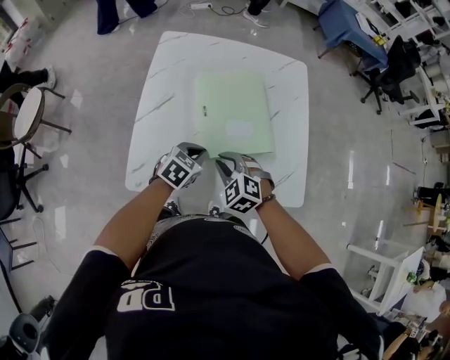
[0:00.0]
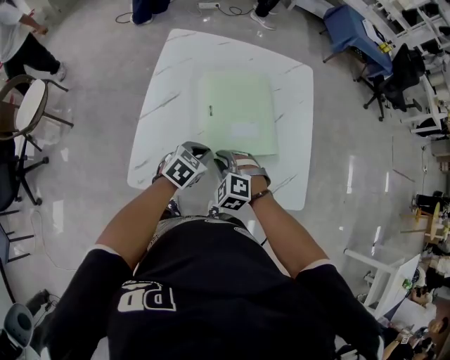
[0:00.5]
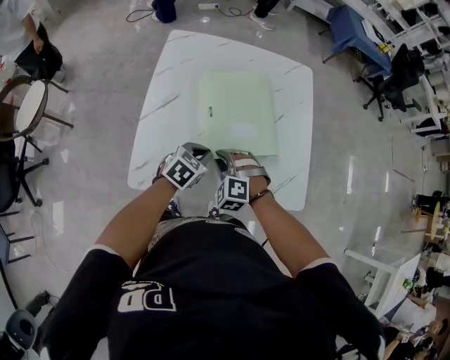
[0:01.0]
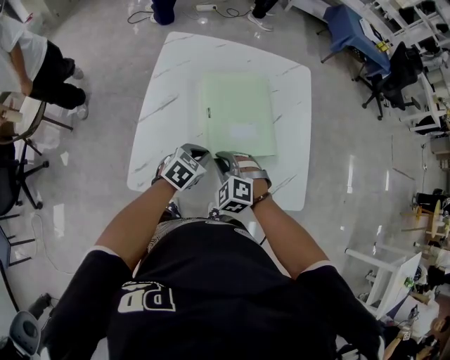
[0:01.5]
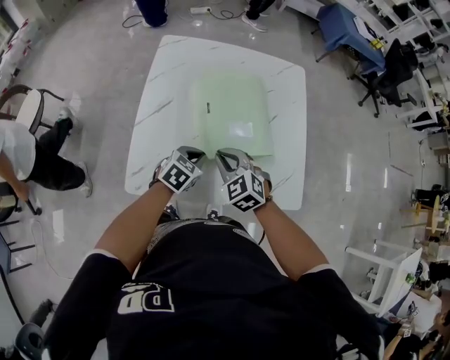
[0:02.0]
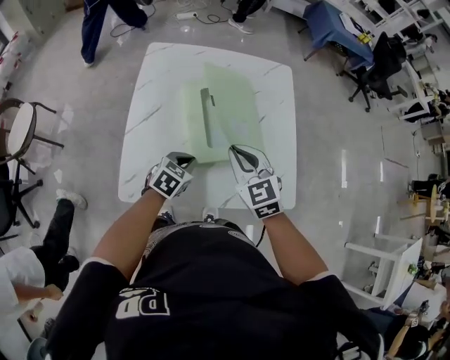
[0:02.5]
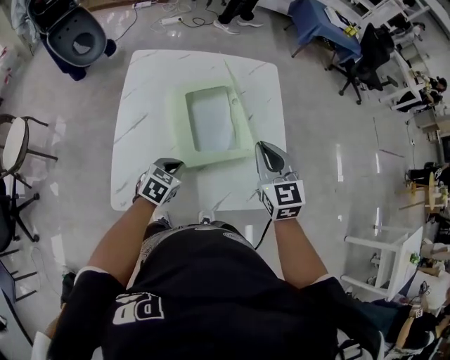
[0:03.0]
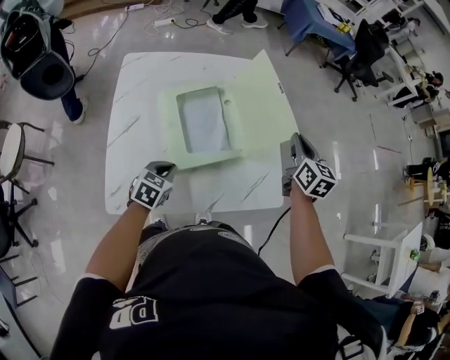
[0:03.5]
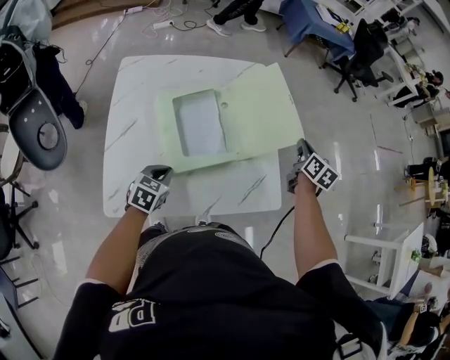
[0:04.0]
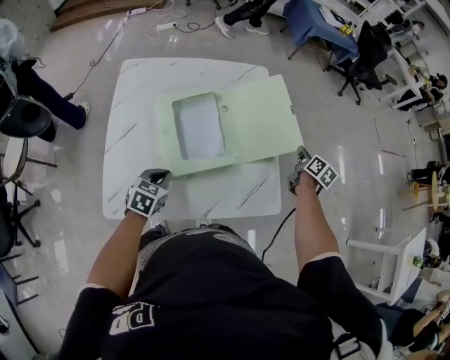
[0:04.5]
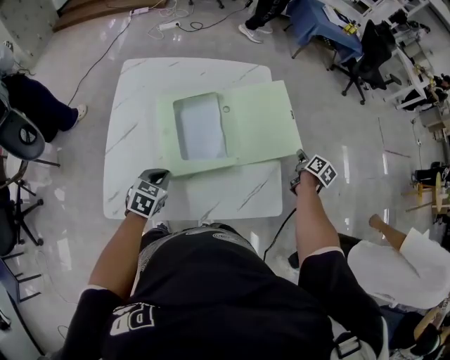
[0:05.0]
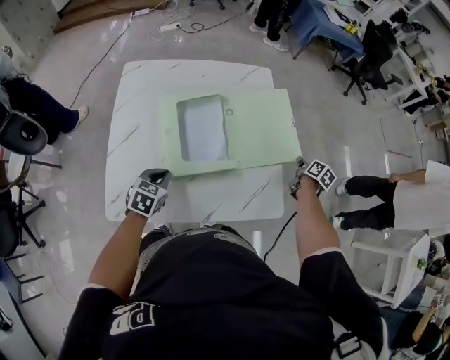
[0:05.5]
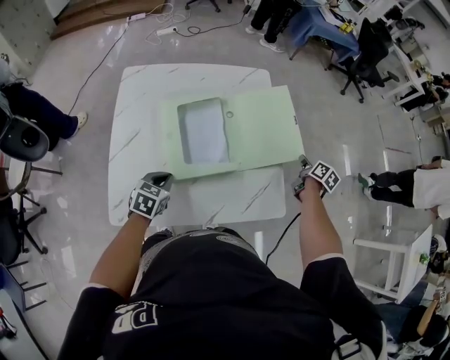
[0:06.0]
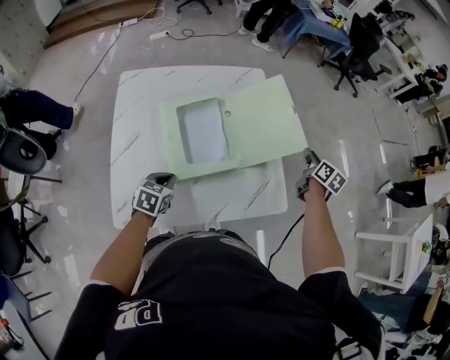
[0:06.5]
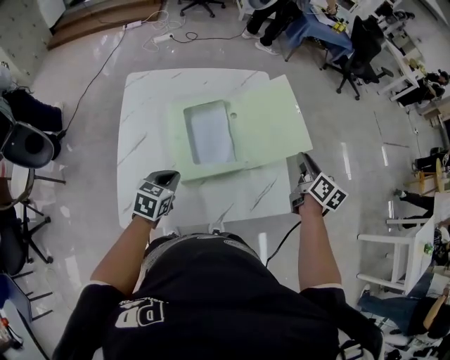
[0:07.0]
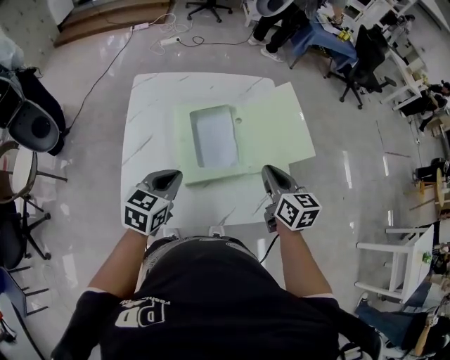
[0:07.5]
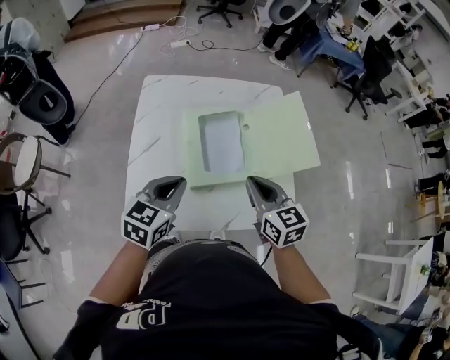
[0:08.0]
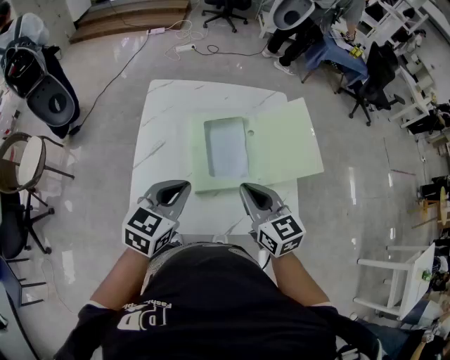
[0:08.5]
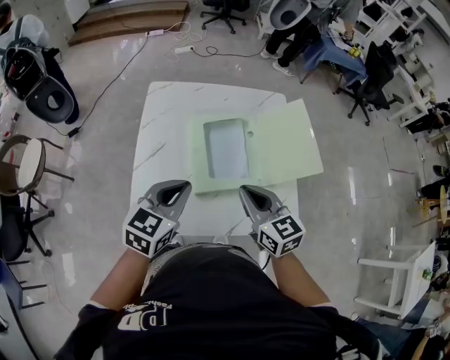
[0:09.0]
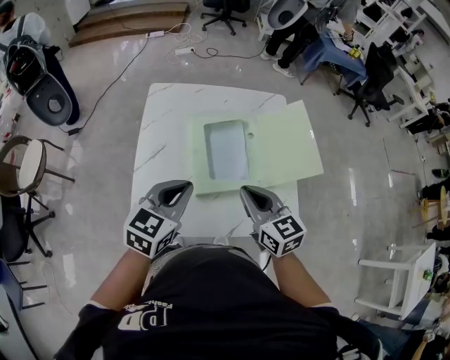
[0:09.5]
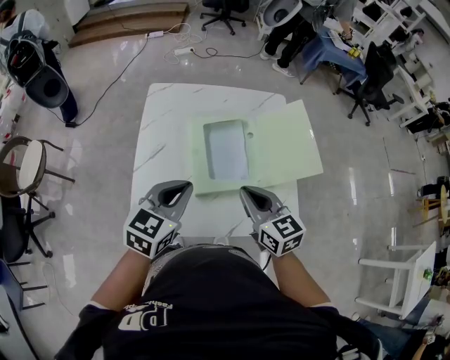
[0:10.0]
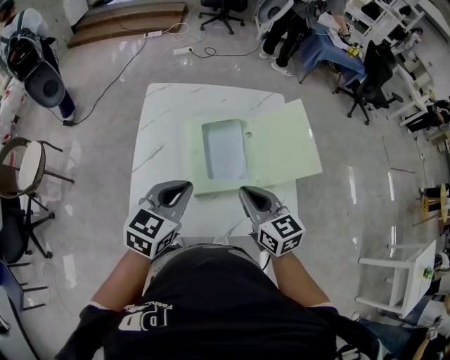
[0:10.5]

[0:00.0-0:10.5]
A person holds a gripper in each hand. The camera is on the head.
0:02.0 to 0:04.0: The right gripper moves to the right and forward, some 40 cm, and rolls clockwise, seen from behind, by some 70 degrees.
0:04.0 to 0:06.5: The right gripper travels downward and back again, roughly 15 cm each way, and opens its fingers.
0:06.5 to 0:08.5: The right gripper moves to the left and backward, roughly 40 cm, changes its angle by about 50 degrees, and closes up, while the left gripper heads upward, covering some 20 cm, and rotates some 20 degrees.
0:08.5 to 0:10.5: The grippers move only a little.

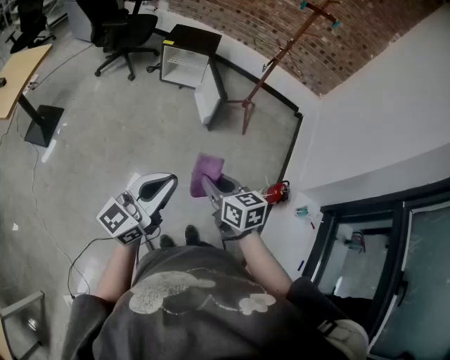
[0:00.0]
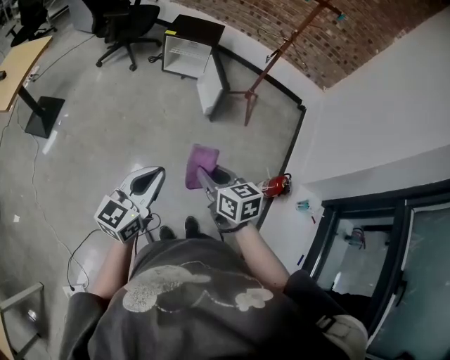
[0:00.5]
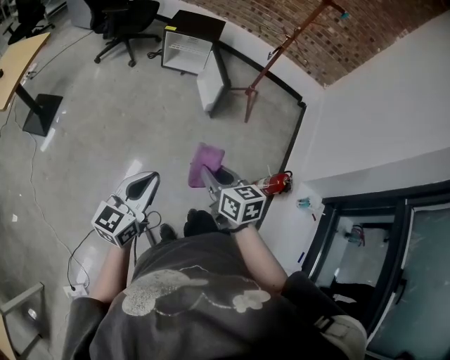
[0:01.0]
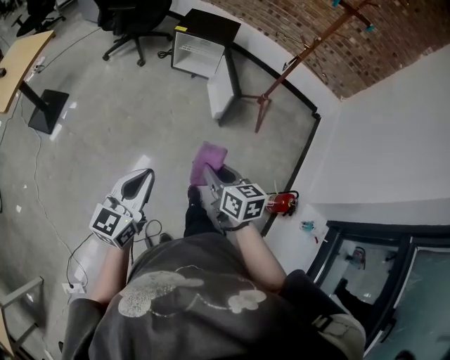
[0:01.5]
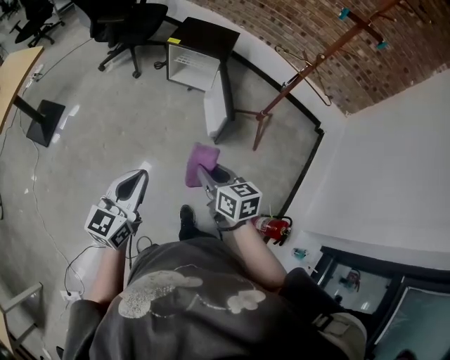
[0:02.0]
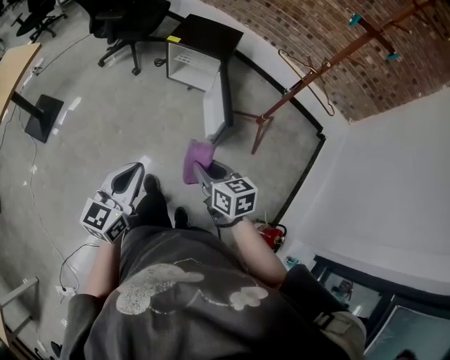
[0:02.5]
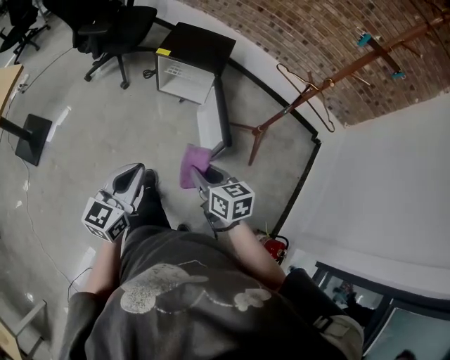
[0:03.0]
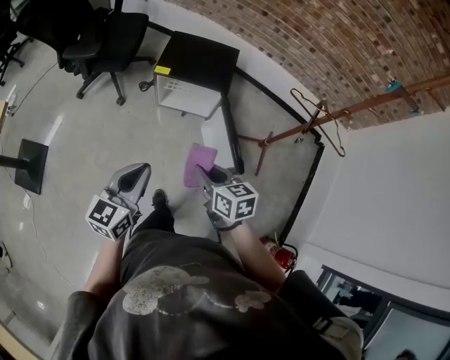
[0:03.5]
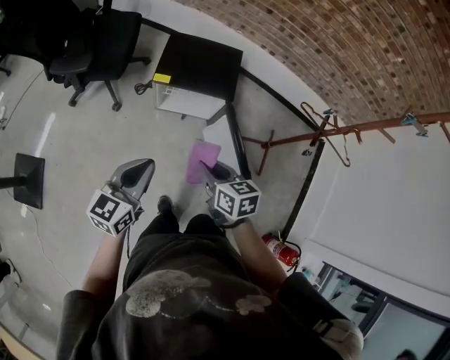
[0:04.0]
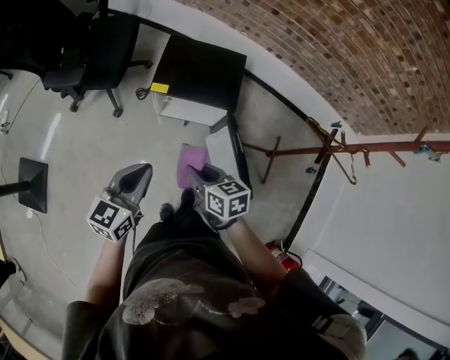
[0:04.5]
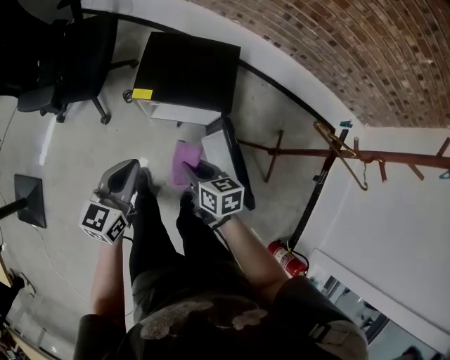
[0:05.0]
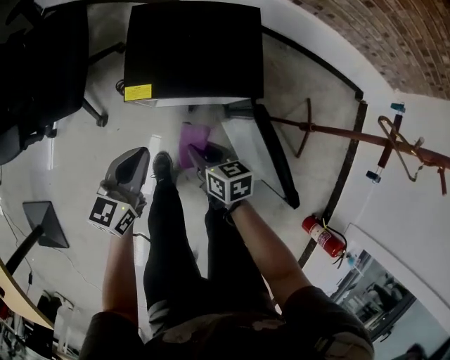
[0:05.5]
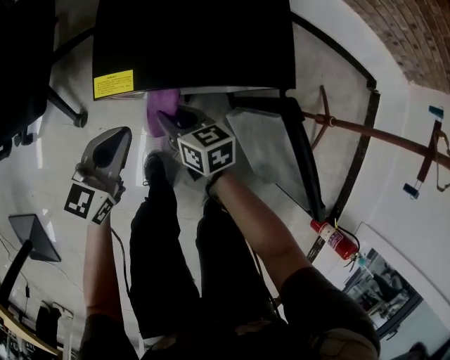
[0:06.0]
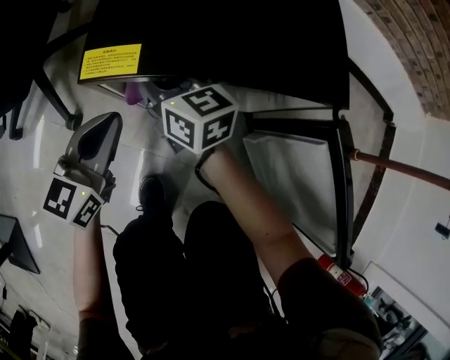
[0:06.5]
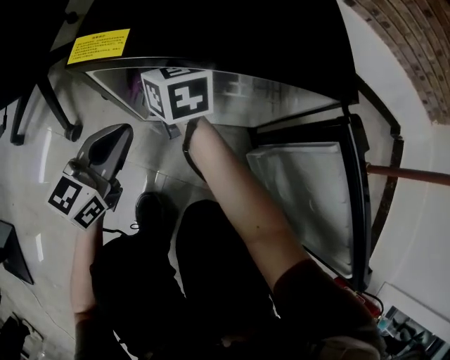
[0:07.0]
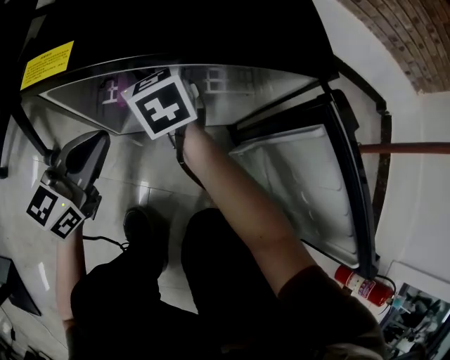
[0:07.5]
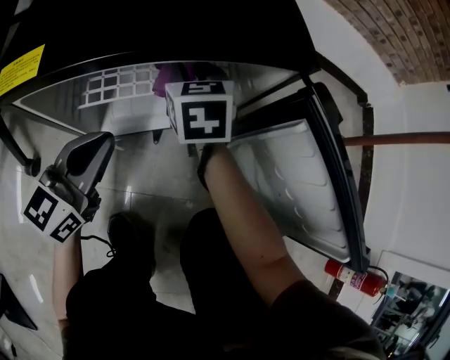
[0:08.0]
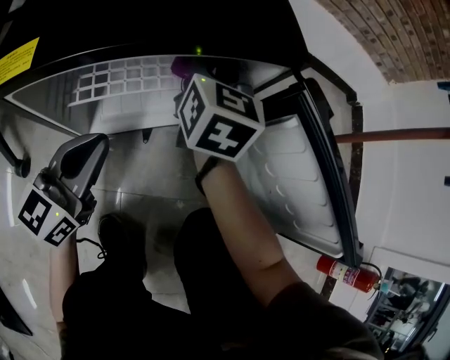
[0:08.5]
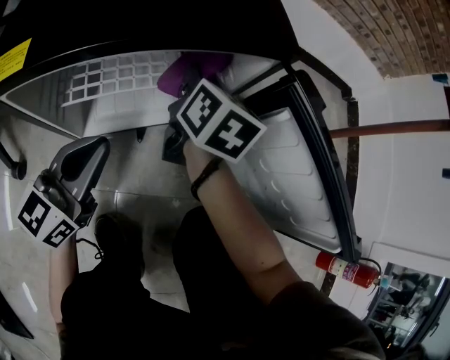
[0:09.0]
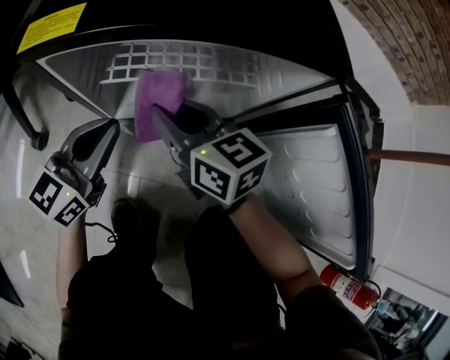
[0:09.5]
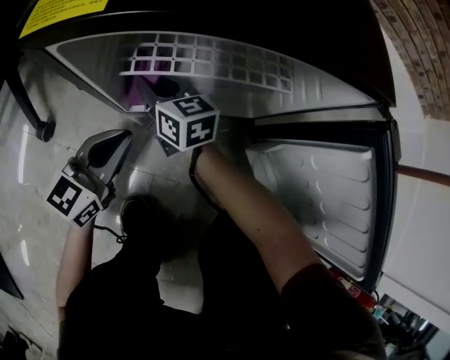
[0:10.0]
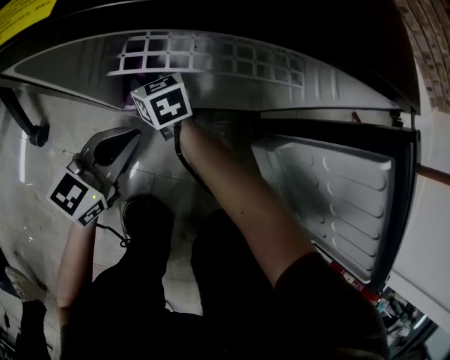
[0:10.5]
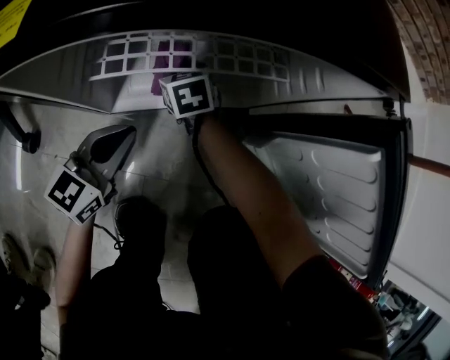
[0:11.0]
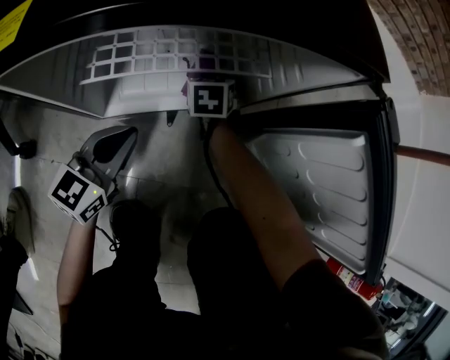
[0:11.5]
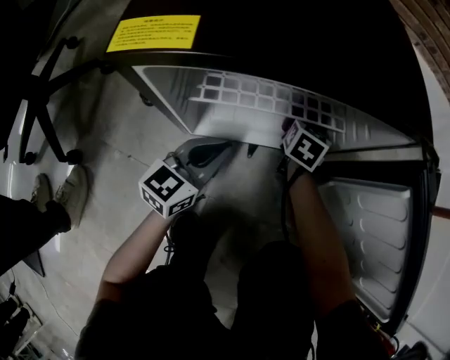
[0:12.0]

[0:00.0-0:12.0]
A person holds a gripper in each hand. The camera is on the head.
0:00.0 to 0:02.0: Both grippers travel together forward, roughly 25 cm. The left gripper changes its angle by approximately 30 degrees.
0:02.0 to 0:04.0: Both grippers are carried forward, approximately 50 cm.
0:04.0 to 0:06.0: The two grippers go approximately 50 cm downward and forward.
0:06.0 to 0:08.0: The left gripper goes roughly 15 cm downward. The right gripper shifts by some 20 cm, and turns by roughly 40 degrees.
0:08.0 to 0:10.0: The left gripper heads downward, covering about 10 cm. Meanwhile the right gripper ends up roughly 20 cm from where it was, and turns by roughly 40 degrees.
0:10.0 to 0:12.0: The right gripper shifts by some 30 cm, and rotates some 60 degrees. The left gripper ends up some 10 cm from where it was.

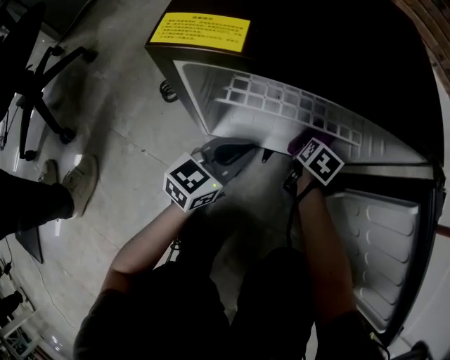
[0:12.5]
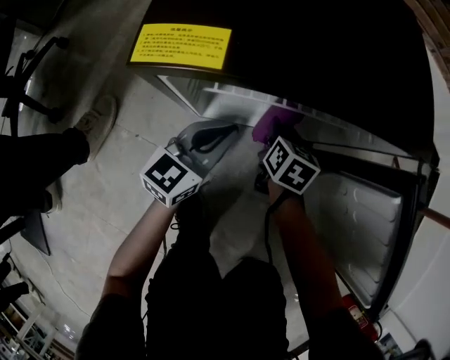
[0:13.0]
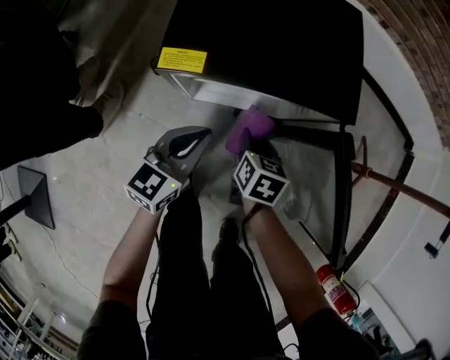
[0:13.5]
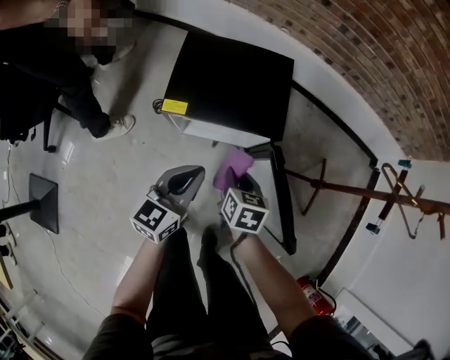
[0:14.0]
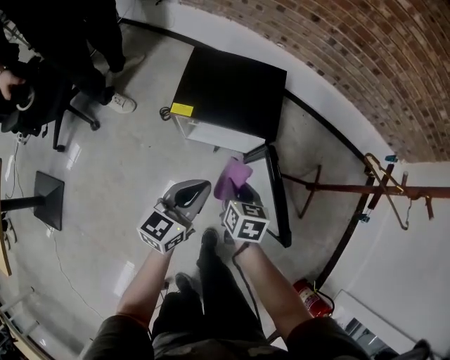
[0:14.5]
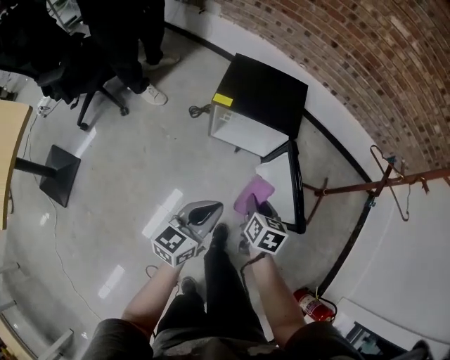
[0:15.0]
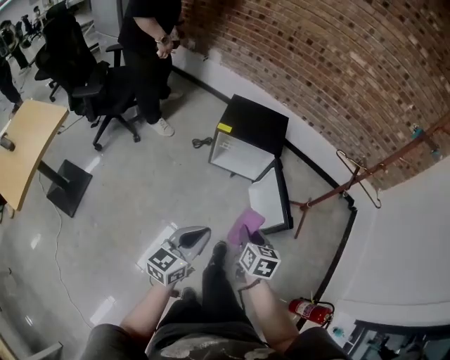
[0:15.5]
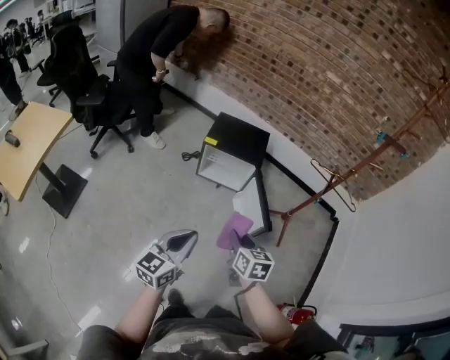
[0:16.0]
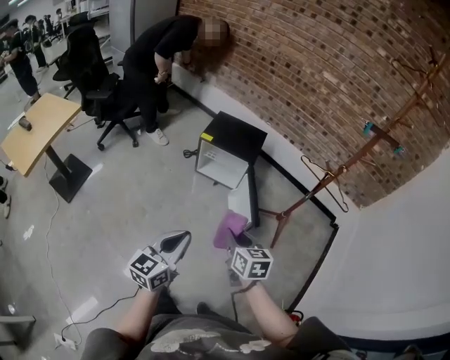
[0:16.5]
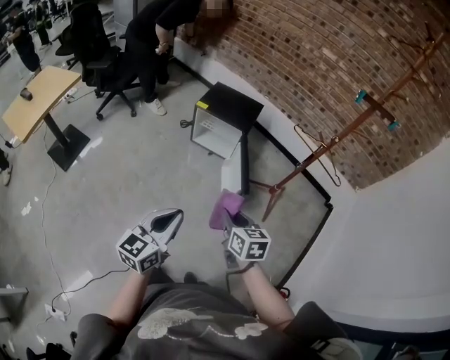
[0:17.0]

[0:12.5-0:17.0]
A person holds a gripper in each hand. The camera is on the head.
0:12.5 to 0:14.5: The two grippers go roughly 50 cm upward. The right gripper swivels approximately 30 degrees.
0:14.5 to 0:17.0: The pair of grippers is taken backward, approximately 50 cm. The grippers both shift upward by roughly 25 cm. The right gripper turns by roughly 30 degrees.
